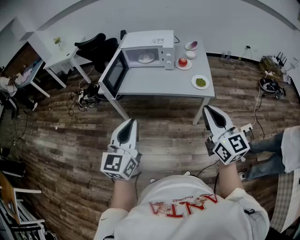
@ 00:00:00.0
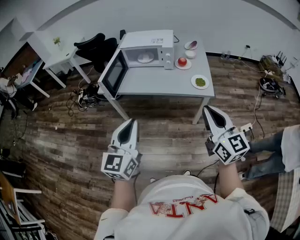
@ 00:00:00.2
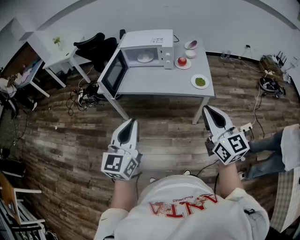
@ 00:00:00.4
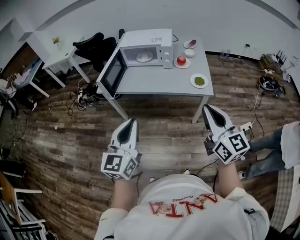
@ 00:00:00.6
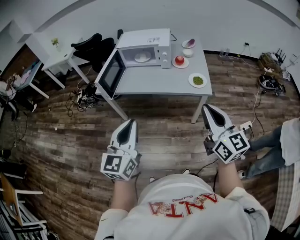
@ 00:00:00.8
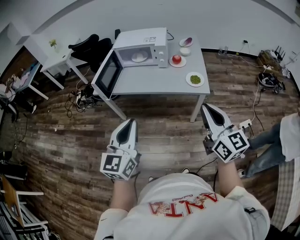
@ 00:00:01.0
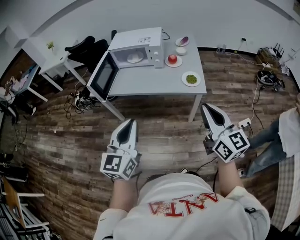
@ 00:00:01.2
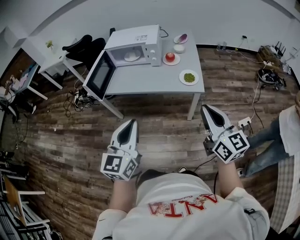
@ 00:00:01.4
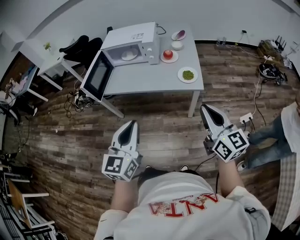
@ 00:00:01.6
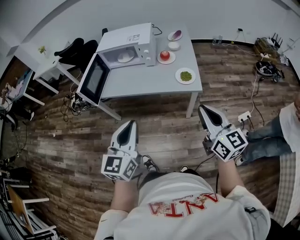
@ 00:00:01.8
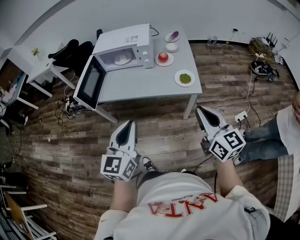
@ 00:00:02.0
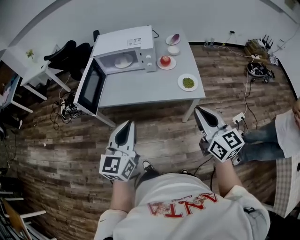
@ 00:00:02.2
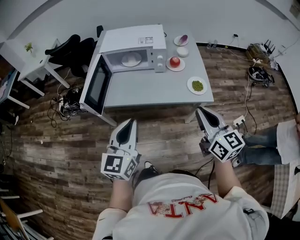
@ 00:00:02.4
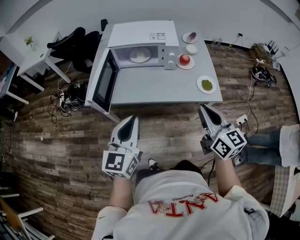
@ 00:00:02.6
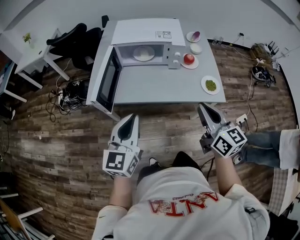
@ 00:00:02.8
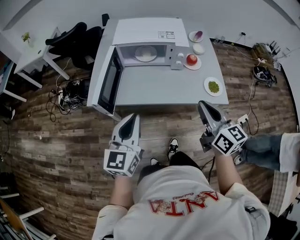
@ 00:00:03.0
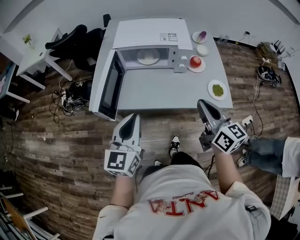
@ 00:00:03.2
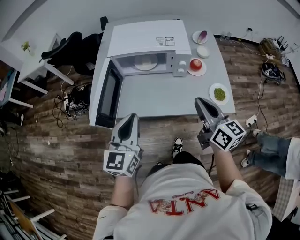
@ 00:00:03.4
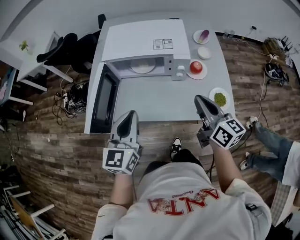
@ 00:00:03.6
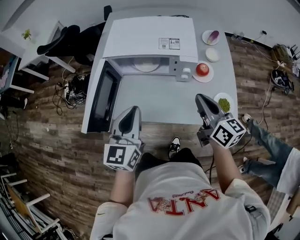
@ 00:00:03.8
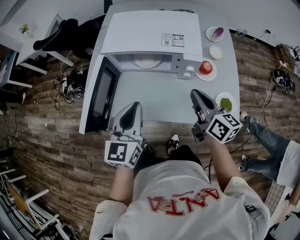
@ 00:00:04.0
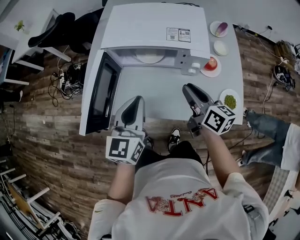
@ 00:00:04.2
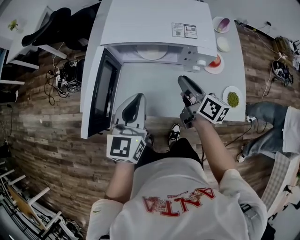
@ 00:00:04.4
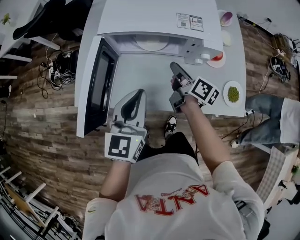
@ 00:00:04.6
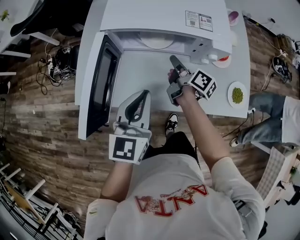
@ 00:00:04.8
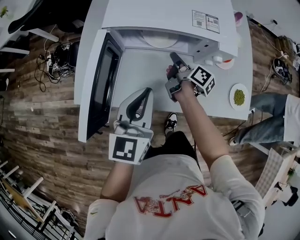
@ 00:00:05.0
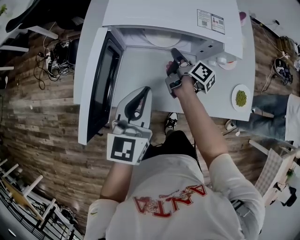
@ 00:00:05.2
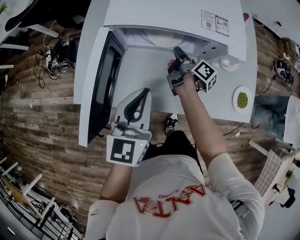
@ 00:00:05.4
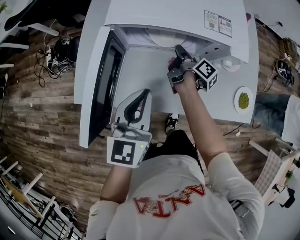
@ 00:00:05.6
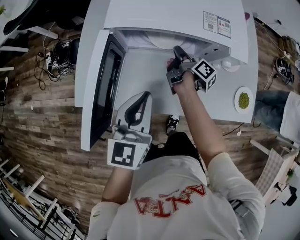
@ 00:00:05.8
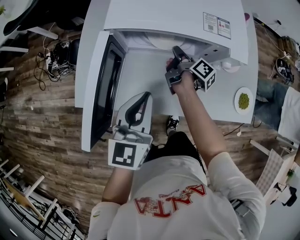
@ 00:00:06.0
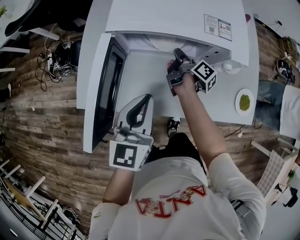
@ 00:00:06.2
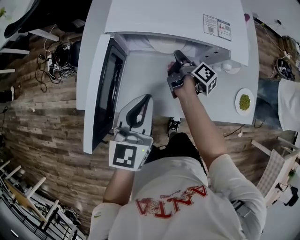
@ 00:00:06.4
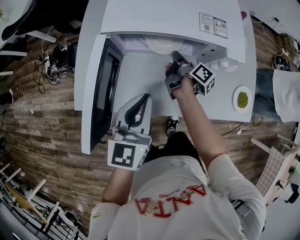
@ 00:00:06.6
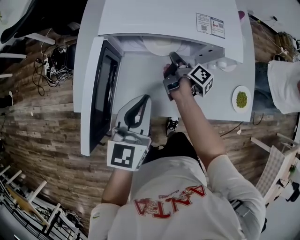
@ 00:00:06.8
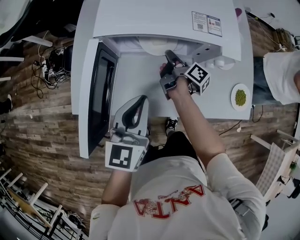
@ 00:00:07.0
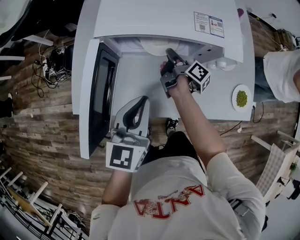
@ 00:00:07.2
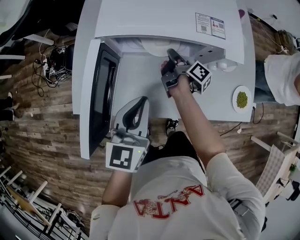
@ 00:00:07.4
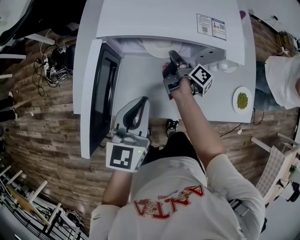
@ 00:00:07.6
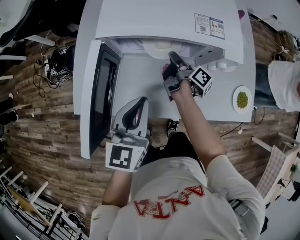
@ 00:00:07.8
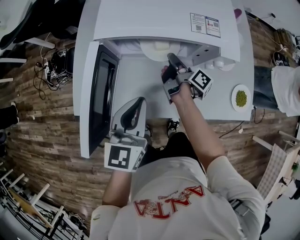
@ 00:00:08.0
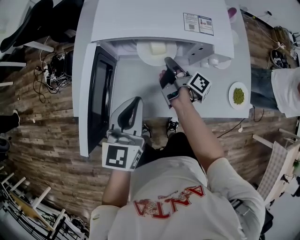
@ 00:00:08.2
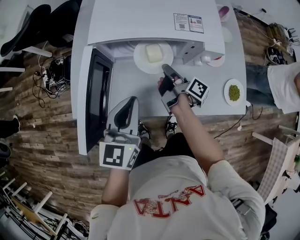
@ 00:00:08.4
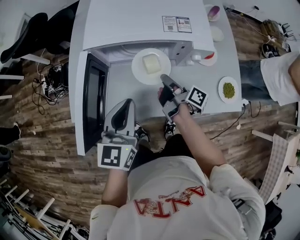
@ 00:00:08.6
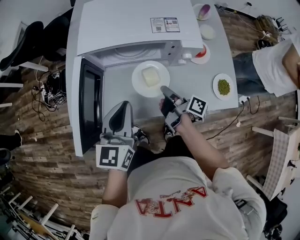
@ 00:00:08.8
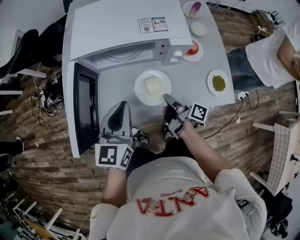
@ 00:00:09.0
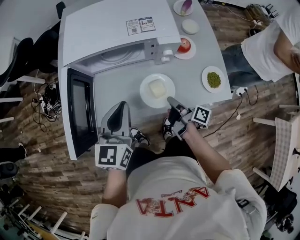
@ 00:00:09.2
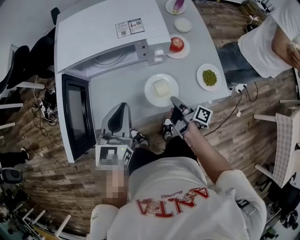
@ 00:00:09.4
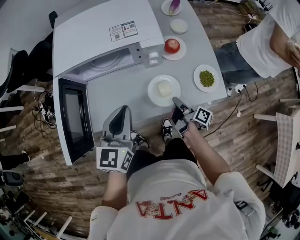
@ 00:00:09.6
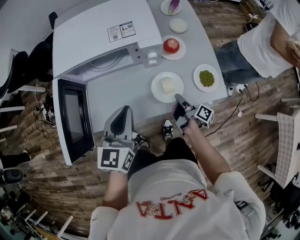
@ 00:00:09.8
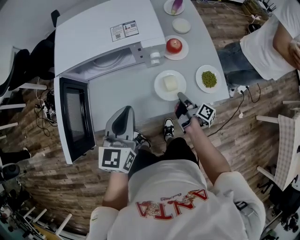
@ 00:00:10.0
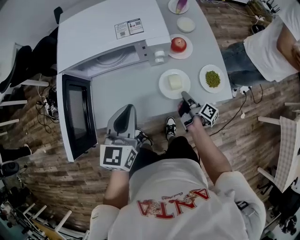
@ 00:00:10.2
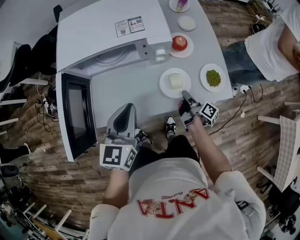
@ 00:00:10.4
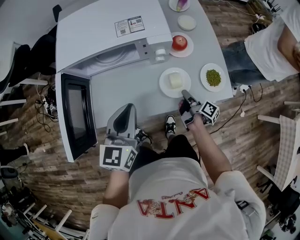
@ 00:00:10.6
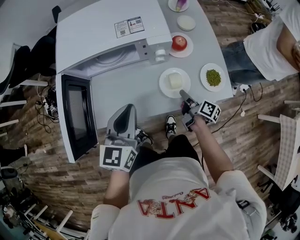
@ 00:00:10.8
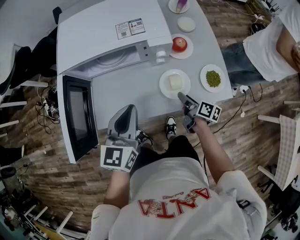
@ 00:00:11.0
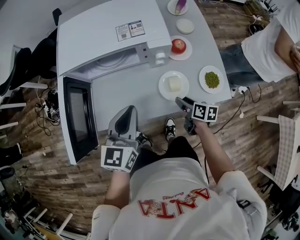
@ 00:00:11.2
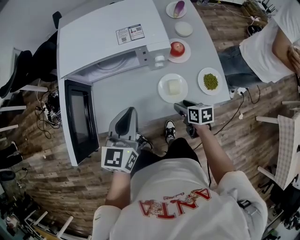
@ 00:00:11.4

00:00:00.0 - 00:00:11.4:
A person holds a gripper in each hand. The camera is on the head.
00:00:00.0 - 00:00:01.4: The grippers both shift to the right by some 10 cm.
00:00:01.4 - 00:00:02.8: The right gripper moves to the left and forward, some 30 cm. The left gripper travels forward and to the left by roughly 30 cm.
00:00:02.8 - 00:00:04.2: The left gripper travels forward by approximately 25 cm. The right gripper shifts about 30 cm forward and downward, changes its angle by approximately 30 degrees, and opens.
00:00:04.2 - 00:00:05.6: The left gripper shifts about 5 cm downward, while the right gripper travels downward, forward and to the left by some 25 cm, and rotates around the line of its fingers by some 50 degrees, clockwise from behind.
00:00:05.6 - 00:00:07.2: There are only small adjustments of the grippers.
00:00:07.2 - 00:00:08.6: The right gripper shifts about 10 cm backward.
00:00:08.6 - 00:00:10.0: The right gripper moves to the right, backward and downward, about 25 cm. Meanwhile the left gripper moves to the right, about 10 cm.
00:00:10.0 - 00:00:11.4: The right gripper tilts its fingers approximately 30 degrees downward, and opens.

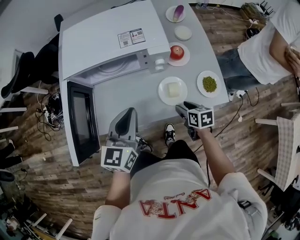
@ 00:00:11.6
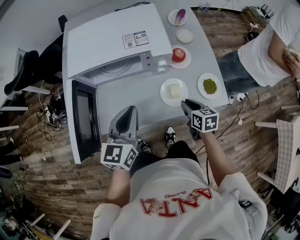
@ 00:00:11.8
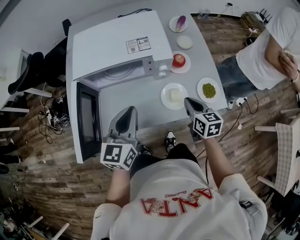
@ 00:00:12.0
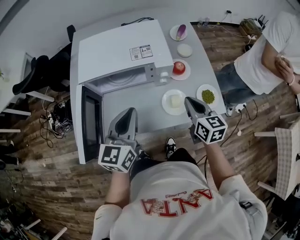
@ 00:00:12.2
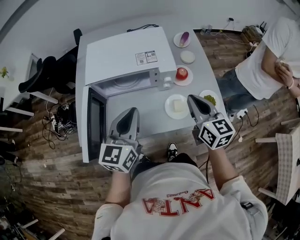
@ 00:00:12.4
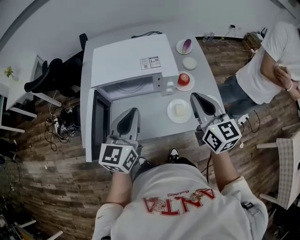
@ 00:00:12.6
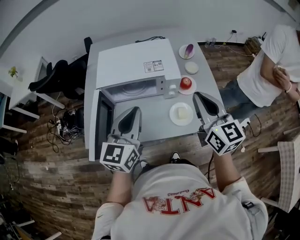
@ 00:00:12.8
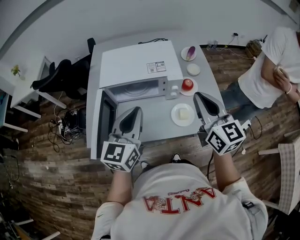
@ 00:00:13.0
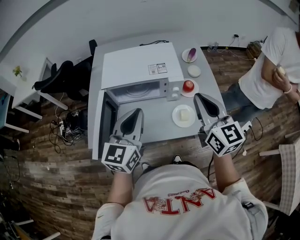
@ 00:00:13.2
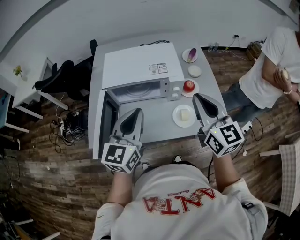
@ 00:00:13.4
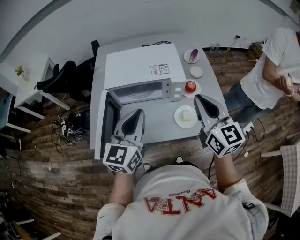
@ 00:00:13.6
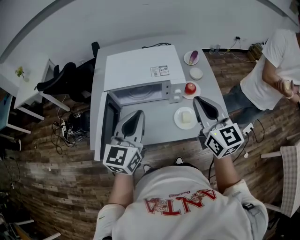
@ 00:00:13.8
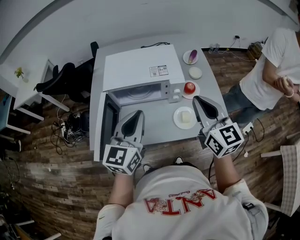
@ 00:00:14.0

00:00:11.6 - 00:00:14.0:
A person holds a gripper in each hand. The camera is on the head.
00:00:11.6 - 00:00:12.8: The right gripper moves upward, approximately 40 cm, tilts its fingers about 40 degrees upward, and closes its fingers, while the left gripper goes some 15 cm upward.
00:00:12.8 - 00:00:14.0: The grippers stay close to where they were, moving slightly.

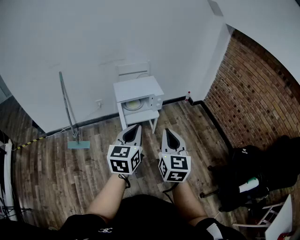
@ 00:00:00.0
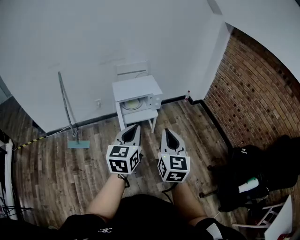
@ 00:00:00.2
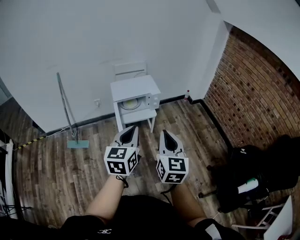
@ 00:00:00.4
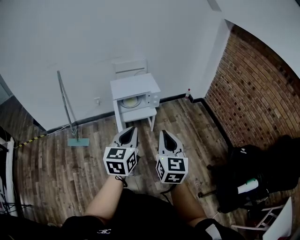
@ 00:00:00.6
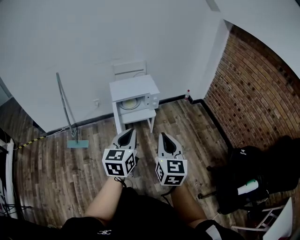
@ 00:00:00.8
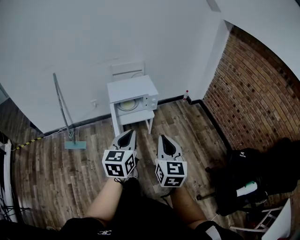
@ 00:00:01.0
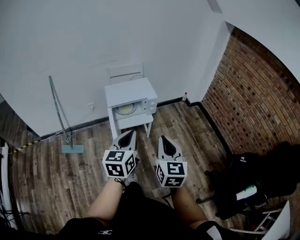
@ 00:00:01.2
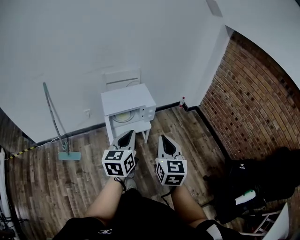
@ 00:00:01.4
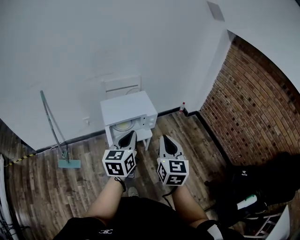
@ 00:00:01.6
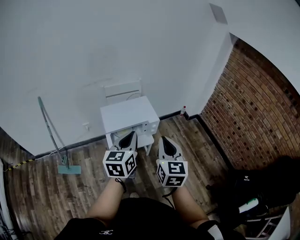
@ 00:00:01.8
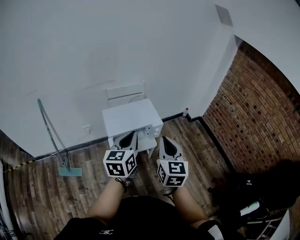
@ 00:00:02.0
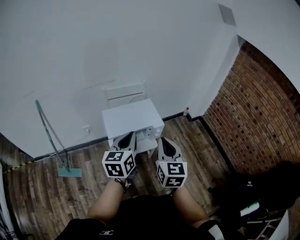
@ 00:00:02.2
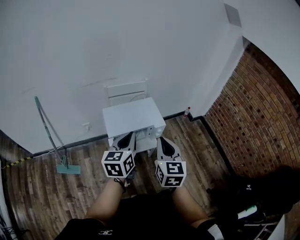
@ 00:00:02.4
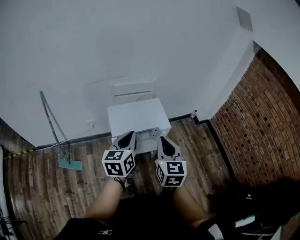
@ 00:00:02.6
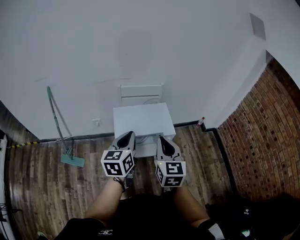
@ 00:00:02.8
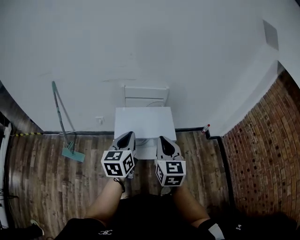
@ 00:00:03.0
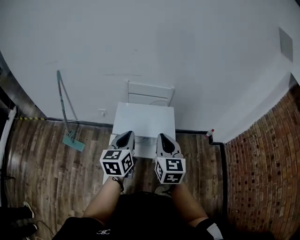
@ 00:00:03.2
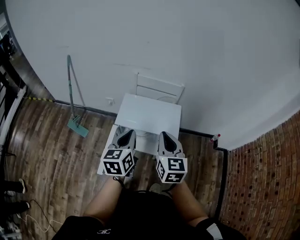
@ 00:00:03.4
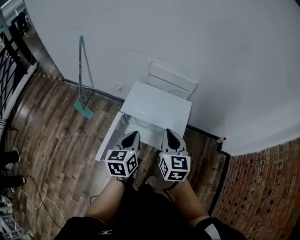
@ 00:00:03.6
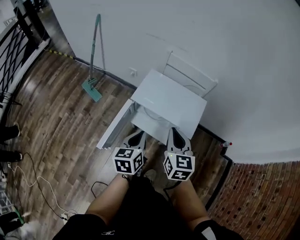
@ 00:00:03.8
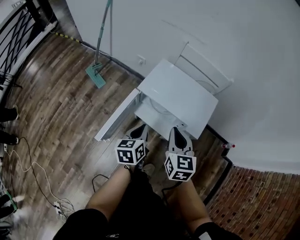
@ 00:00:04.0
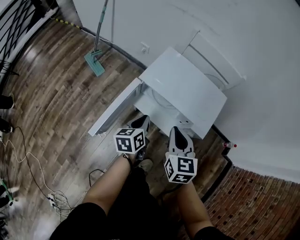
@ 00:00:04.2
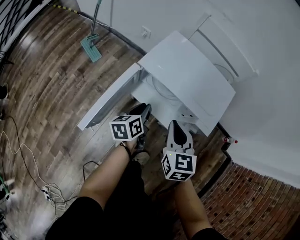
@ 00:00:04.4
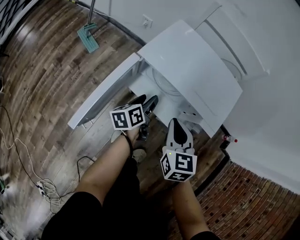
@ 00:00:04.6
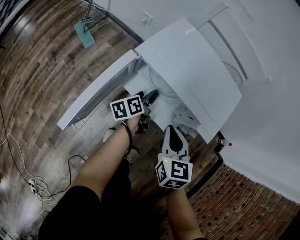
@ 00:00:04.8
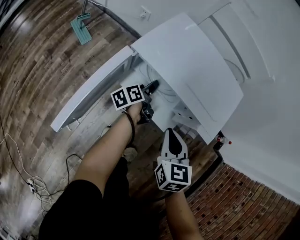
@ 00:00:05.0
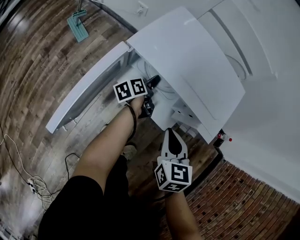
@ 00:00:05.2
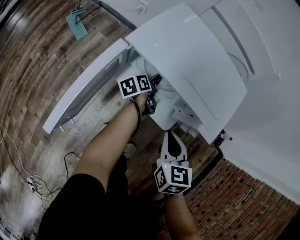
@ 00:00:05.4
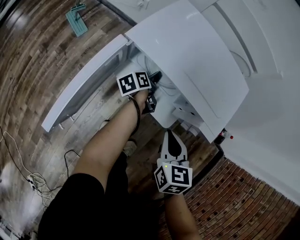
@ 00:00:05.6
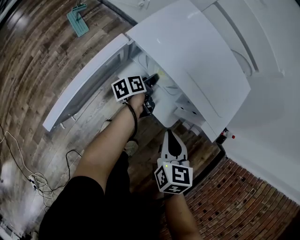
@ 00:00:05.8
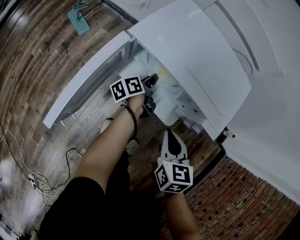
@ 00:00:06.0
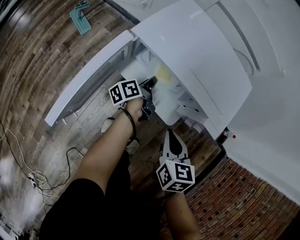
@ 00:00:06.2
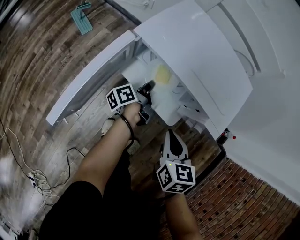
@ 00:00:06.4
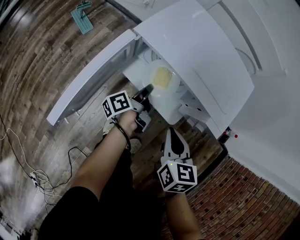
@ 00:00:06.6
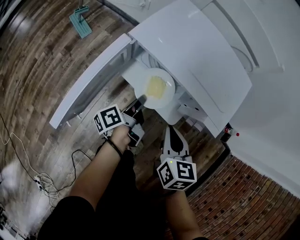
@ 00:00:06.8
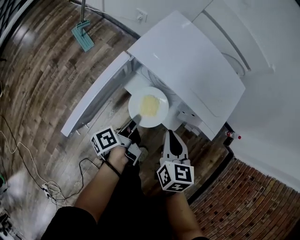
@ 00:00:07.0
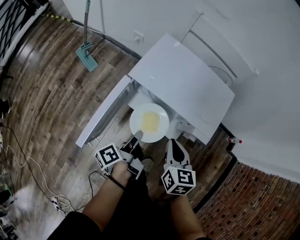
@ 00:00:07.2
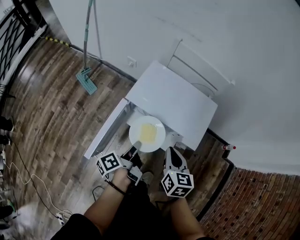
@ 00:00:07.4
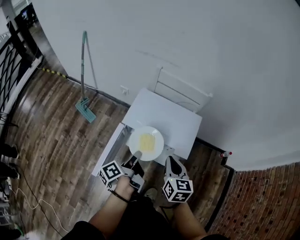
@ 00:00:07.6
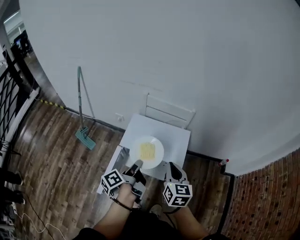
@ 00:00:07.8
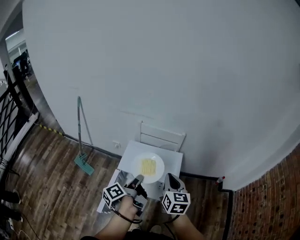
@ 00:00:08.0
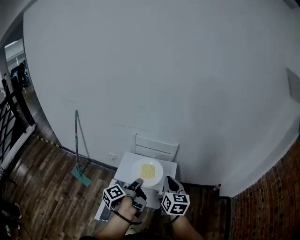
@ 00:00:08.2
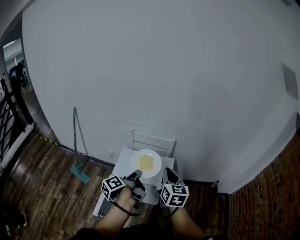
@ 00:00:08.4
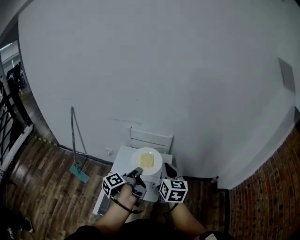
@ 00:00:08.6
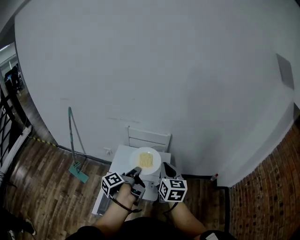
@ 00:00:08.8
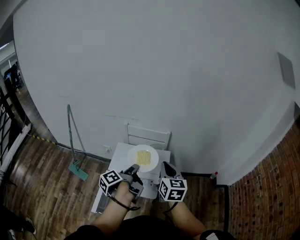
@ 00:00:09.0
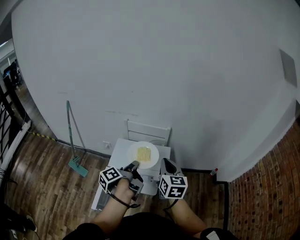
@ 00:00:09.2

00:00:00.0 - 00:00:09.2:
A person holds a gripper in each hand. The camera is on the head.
00:00:00.0 - 00:00:01.6: The grippers both shift forward by roughly 20 cm.
00:00:01.6 - 00:00:03.0: Both grippers move forward, approximately 20 cm. The right gripper swivels some 20 degrees.
00:00:03.0 - 00:00:04.6: Both grippers move downward, approximately 40 cm. The left gripper rolls counterclockwise, seen from behind, by roughly 50 degrees, and opens its fingers; the right gripper changes its angle by some 40 degrees.
00:00:04.6 - 00:00:06.2: The right gripper goes approximately 10 cm downward; the left gripper is displaced downward and forward by roughly 10 cm, turns by roughly 30 degrees, and closes its fingers.
00:00:06.2 - 00:00:07.6: The two grippers go some 30 cm upward.
00:00:07.6 - 00:00:09.2: The right gripper travels upward and to the right by approximately 20 cm. The left gripper heads upward, to the right and forward, covering approximately 20 cm.
